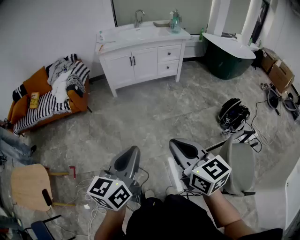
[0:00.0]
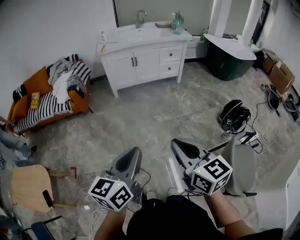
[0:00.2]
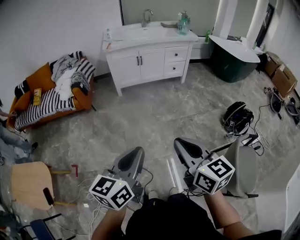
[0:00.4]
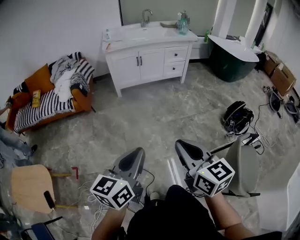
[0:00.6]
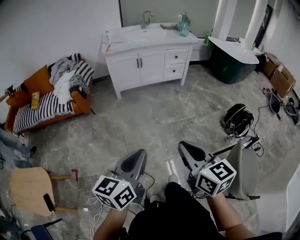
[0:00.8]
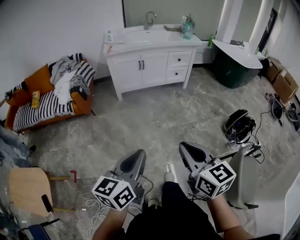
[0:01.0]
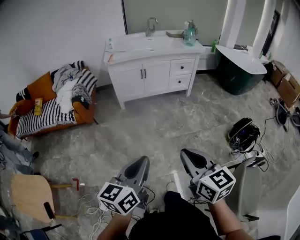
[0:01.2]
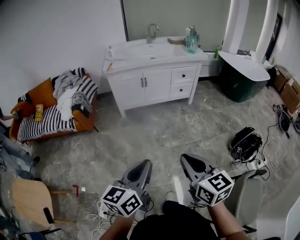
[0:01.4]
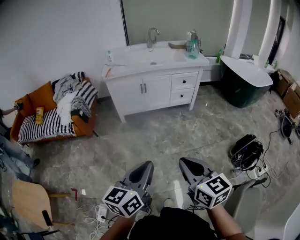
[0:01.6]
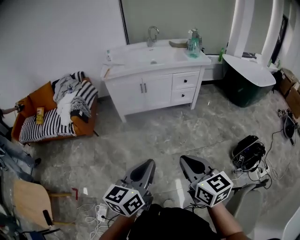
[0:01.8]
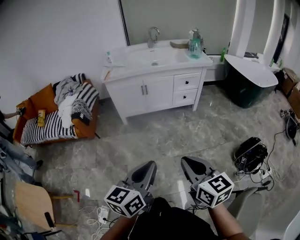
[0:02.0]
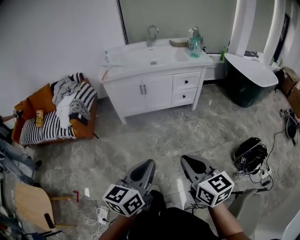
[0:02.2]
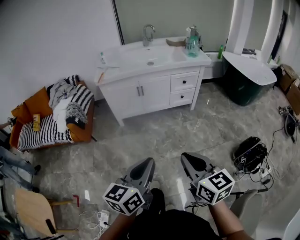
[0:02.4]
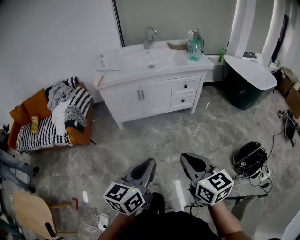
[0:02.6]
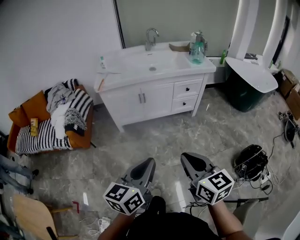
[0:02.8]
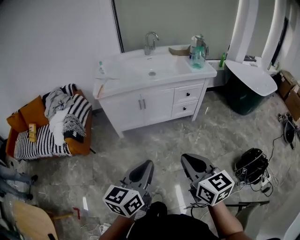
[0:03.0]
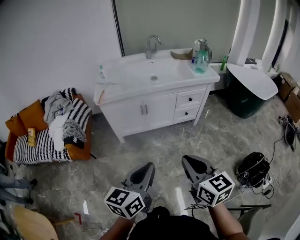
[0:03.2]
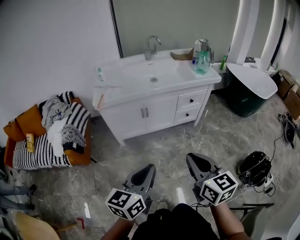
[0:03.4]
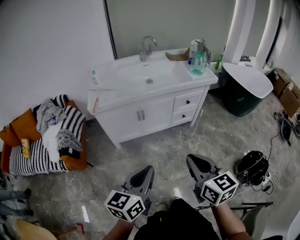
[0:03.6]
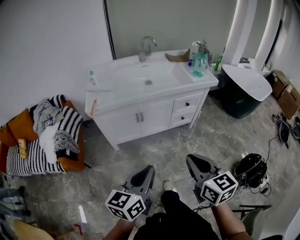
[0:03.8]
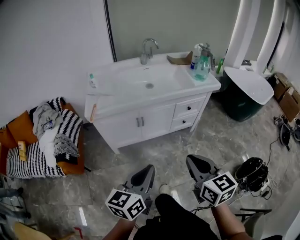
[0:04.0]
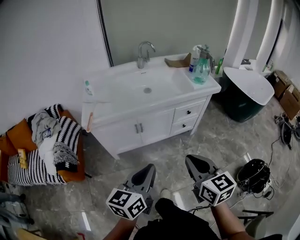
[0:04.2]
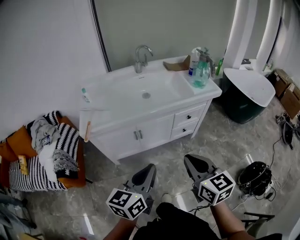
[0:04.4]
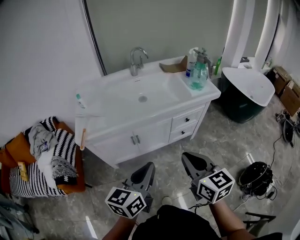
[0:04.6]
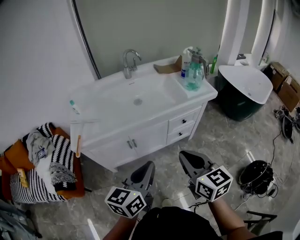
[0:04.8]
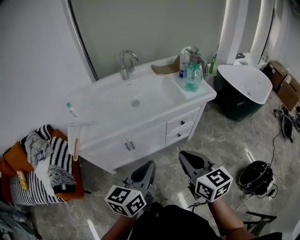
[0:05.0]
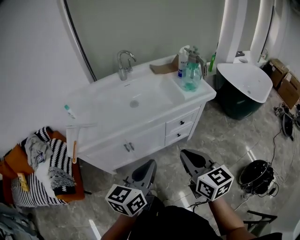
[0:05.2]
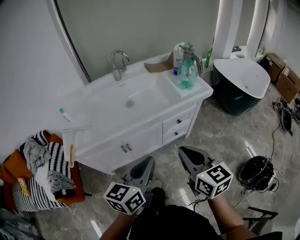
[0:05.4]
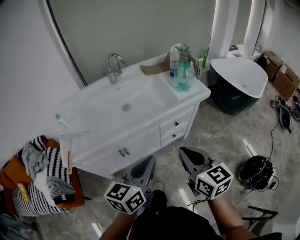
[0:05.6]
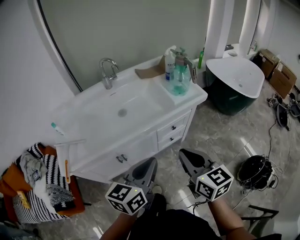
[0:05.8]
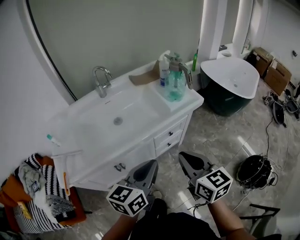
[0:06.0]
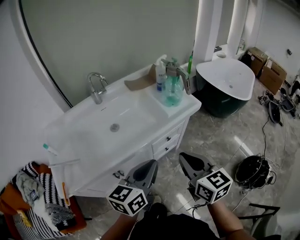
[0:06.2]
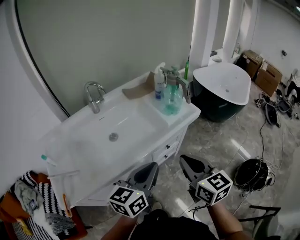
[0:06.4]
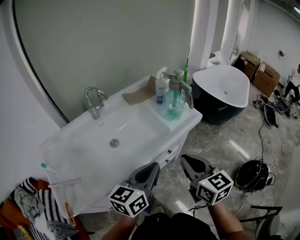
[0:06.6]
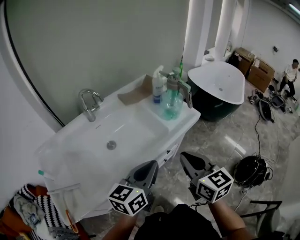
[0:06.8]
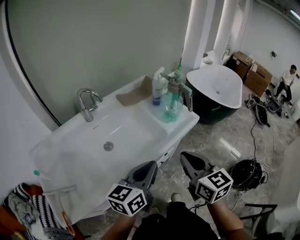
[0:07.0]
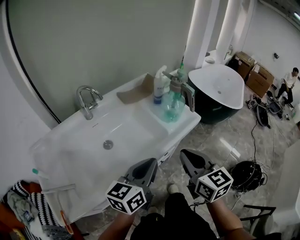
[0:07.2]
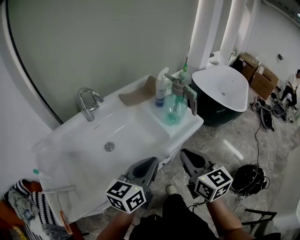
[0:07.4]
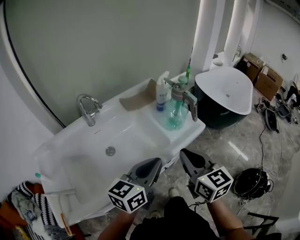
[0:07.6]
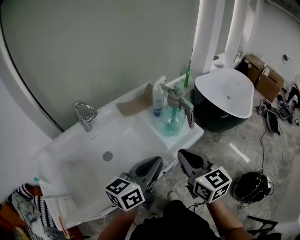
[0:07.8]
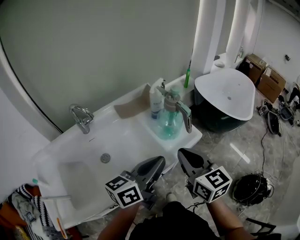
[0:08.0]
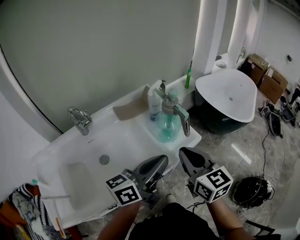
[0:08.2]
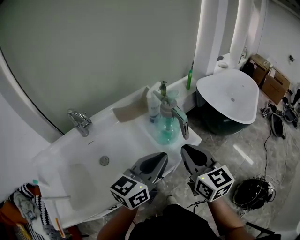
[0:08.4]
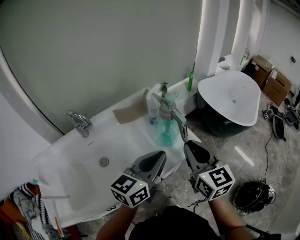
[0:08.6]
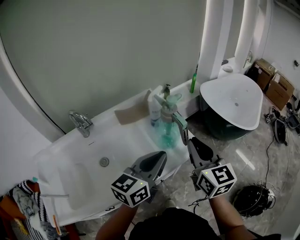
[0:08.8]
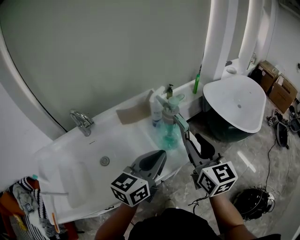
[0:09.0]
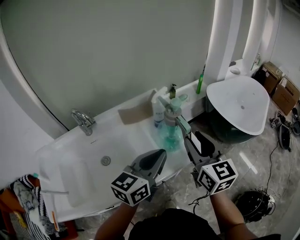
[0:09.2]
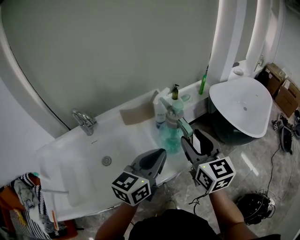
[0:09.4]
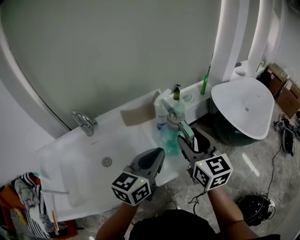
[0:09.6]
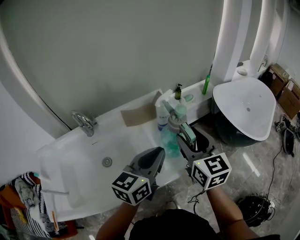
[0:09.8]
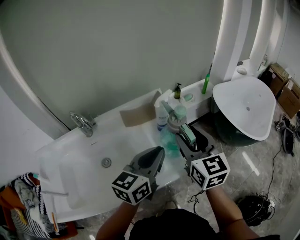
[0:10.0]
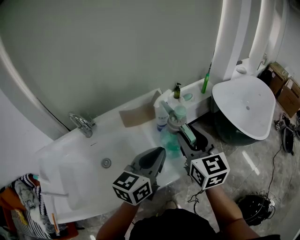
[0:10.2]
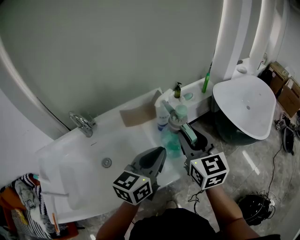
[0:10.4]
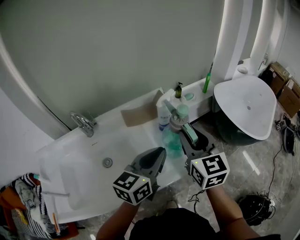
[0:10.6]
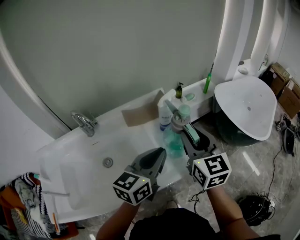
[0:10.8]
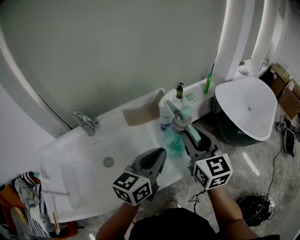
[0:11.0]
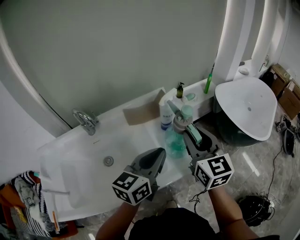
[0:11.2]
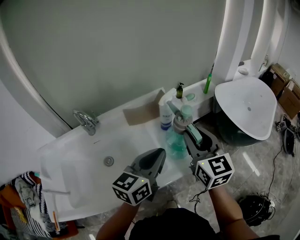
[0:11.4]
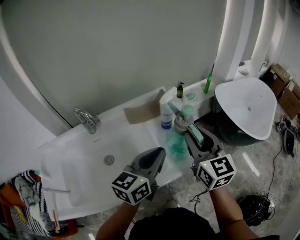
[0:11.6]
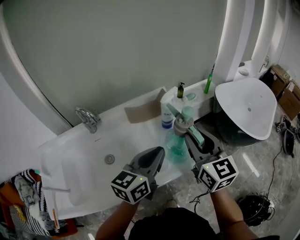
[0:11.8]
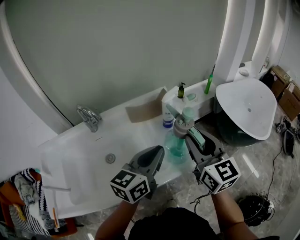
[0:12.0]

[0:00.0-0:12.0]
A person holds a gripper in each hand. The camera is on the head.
0:00.0 to 0:01.6: Both grippers travel together forward, some 25 cm.
0:01.6 to 0:03.0: Both grippers move forward, about 25 cm.
0:03.0 to 0:04.4: Both grippers move forward, approximately 25 cm.
0:04.4 to 0:06.0: Both grippers travel together forward and to the right, some 25 cm.
0:06.0 to 0:07.6: Both grippers travel together forward, about 20 cm.
0:07.6 to 0:09.0: Both grippers travel together forward and to the right, about 15 cm. The right gripper opens its fingers.
0:09.0 to 0:10.4: Both grippers move forward, roughly 10 cm.
0:10.4 to 0:12.0: The right gripper changes place by about 5 cm.

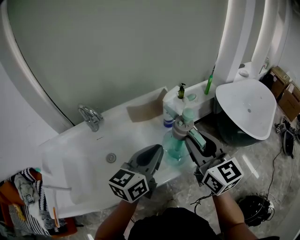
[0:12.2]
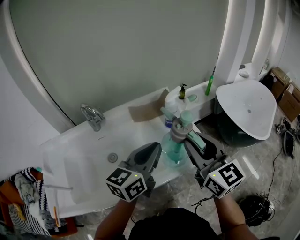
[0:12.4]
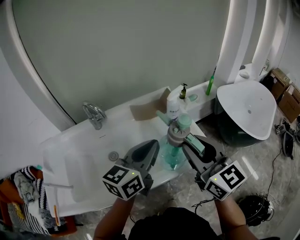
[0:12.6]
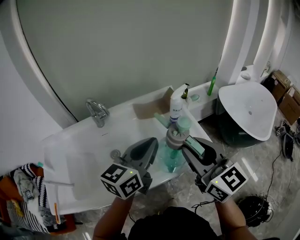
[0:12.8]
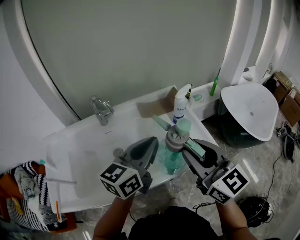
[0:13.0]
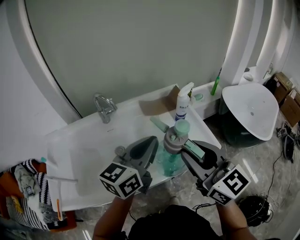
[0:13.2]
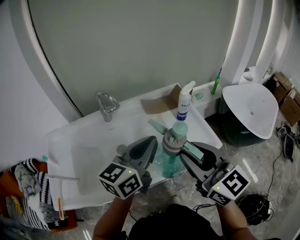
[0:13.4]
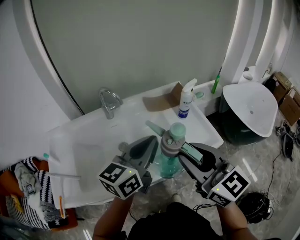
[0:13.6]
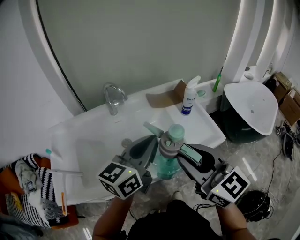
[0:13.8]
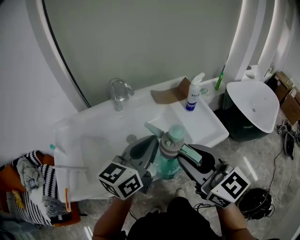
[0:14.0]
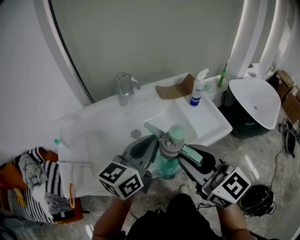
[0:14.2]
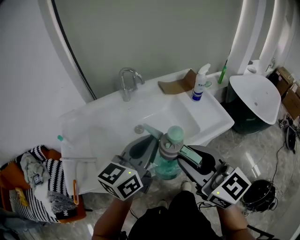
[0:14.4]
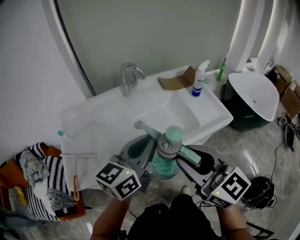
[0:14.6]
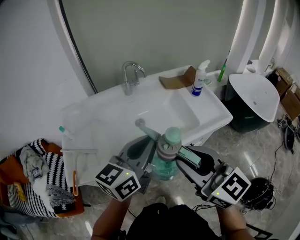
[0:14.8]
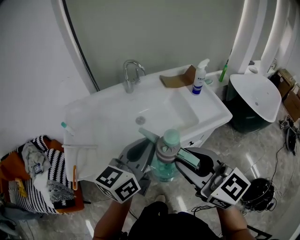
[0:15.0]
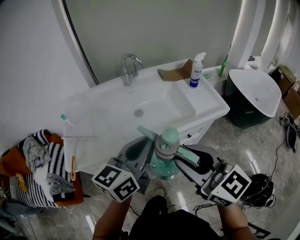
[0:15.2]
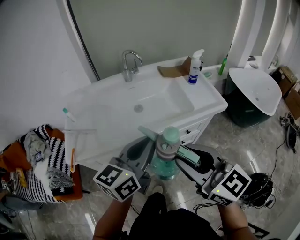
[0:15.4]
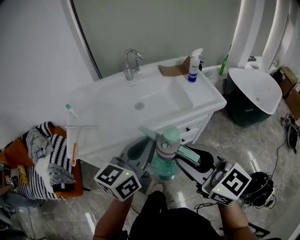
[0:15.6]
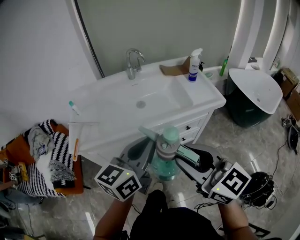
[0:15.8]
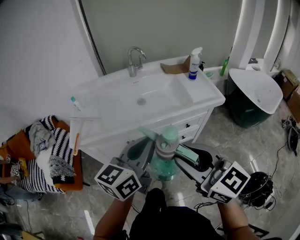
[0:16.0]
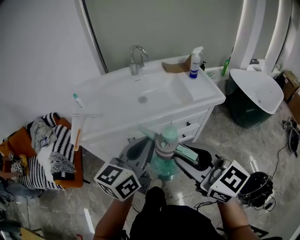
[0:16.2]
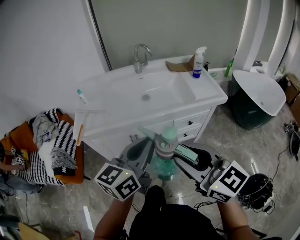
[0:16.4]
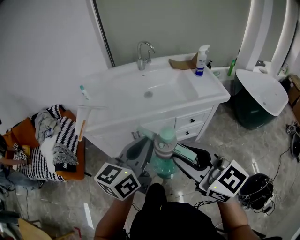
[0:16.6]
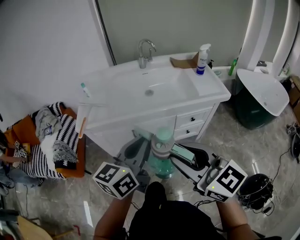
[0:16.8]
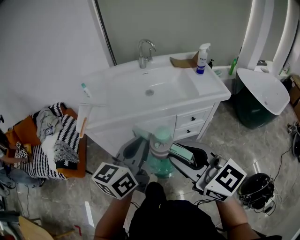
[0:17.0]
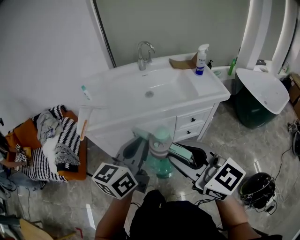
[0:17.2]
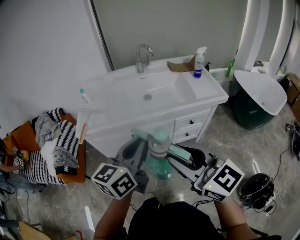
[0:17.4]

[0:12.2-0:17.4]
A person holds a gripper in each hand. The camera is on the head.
0:12.2 to 0:14.0: The two grippers go some 20 cm to the left and backward.
0:14.0 to 0:15.6: Both grippers travel together backward, approximately 25 cm.
0:15.6 to 0:17.4: The left gripper travels backward and to the left by about 10 cm. Meanwhile the right gripper moves backward, about 10 cm.

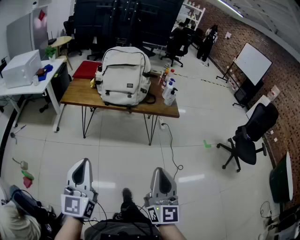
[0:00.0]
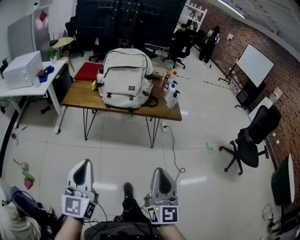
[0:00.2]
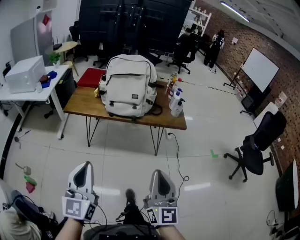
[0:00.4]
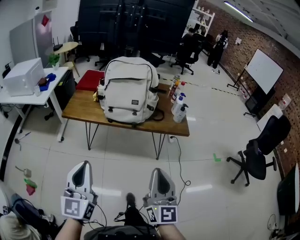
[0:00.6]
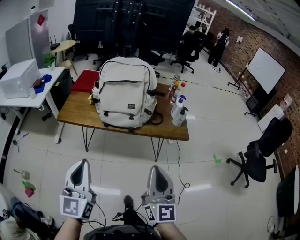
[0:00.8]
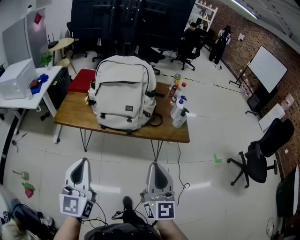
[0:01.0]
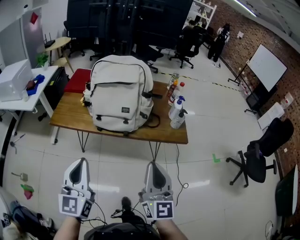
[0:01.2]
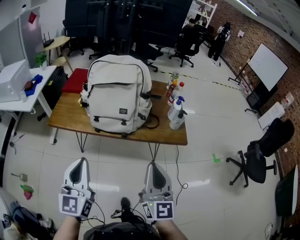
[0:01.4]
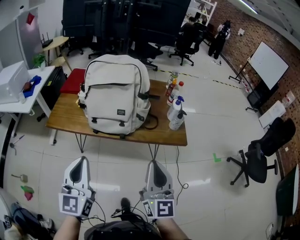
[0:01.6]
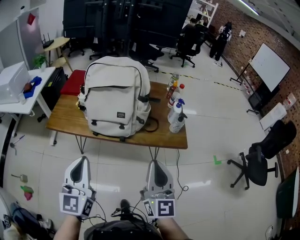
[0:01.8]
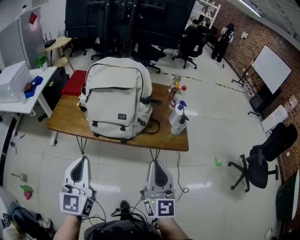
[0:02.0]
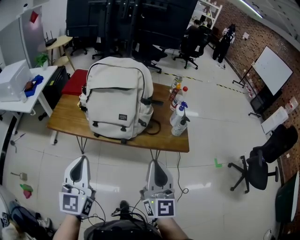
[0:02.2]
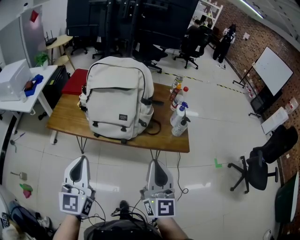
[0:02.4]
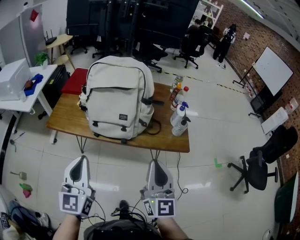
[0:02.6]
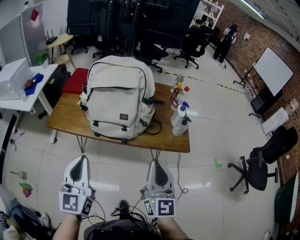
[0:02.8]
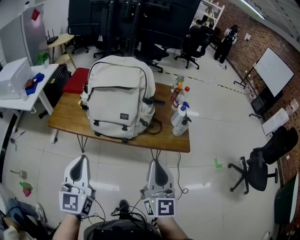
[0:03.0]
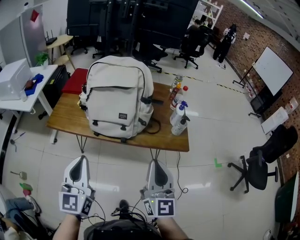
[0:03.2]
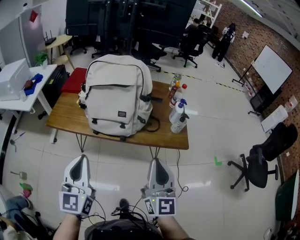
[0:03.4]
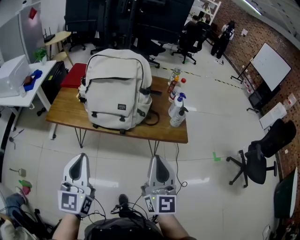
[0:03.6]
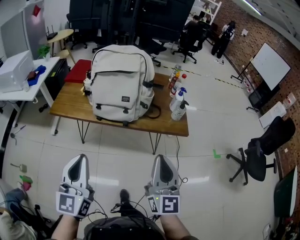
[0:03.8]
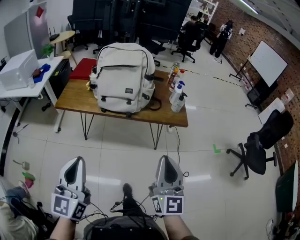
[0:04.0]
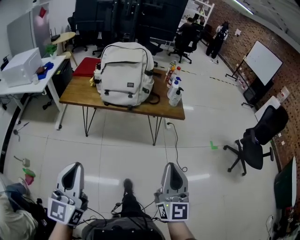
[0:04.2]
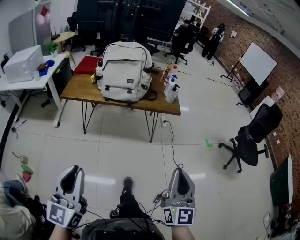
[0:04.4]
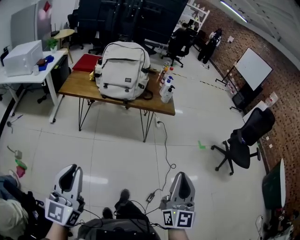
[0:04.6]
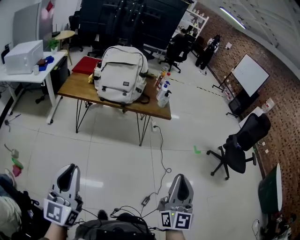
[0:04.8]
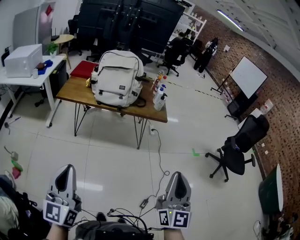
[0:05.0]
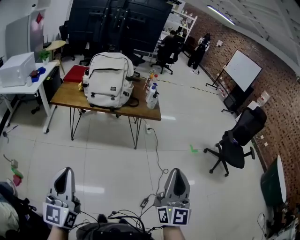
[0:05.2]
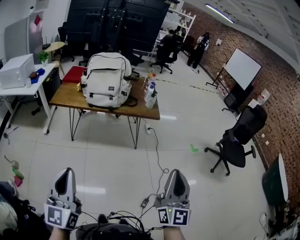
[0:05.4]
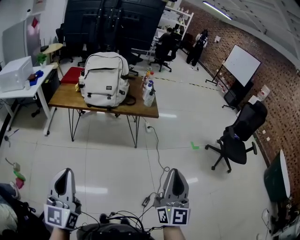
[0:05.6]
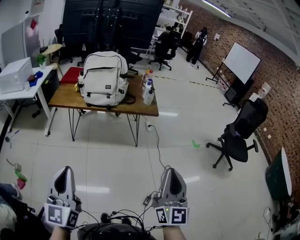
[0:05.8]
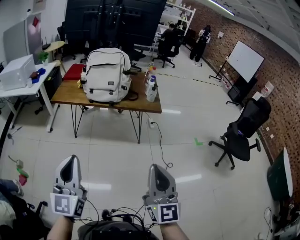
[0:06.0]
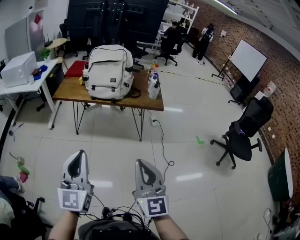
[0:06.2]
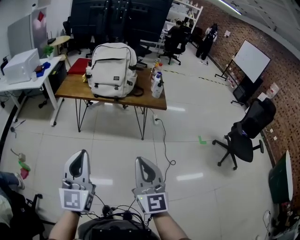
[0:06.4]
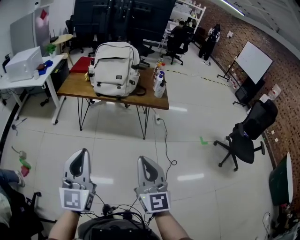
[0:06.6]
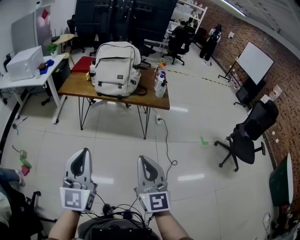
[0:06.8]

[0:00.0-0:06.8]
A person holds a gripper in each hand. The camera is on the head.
0:00.0 to 0:01.4: The two grippers go approximately 35 cm forward and downward.
0:01.4 to 0:02.8: The left gripper ends up about 5 cm from where it was. The right gripper travels forward and downward by approximately 10 cm.
0:02.8 to 0:04.0: Both grippers travel together backward and upward, approximately 25 cm.
0:04.0 to 0:05.4: Both grippers move upward, backward and to the right, about 35 cm.
0:05.4 to 0:06.8: The right gripper goes approximately 15 cm to the left, and turns by approximately 30 degrees. The left gripper shifts by about 5 cm.
